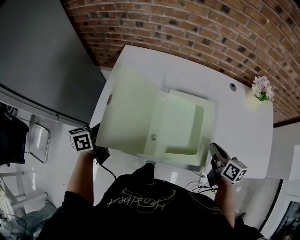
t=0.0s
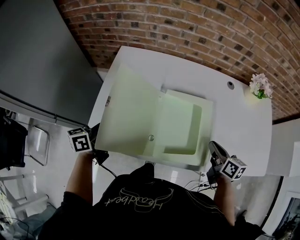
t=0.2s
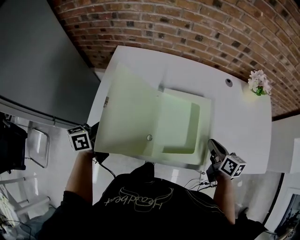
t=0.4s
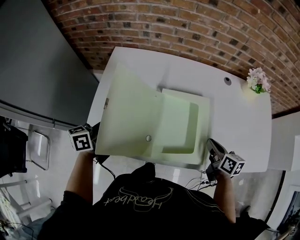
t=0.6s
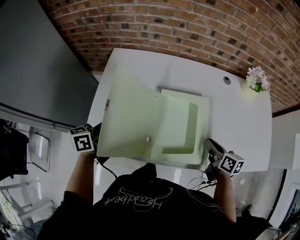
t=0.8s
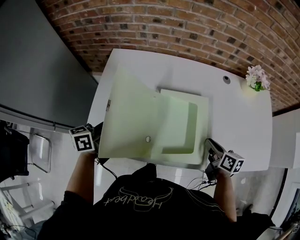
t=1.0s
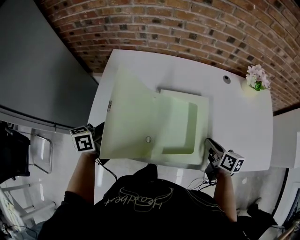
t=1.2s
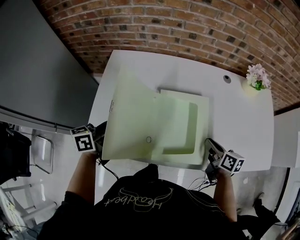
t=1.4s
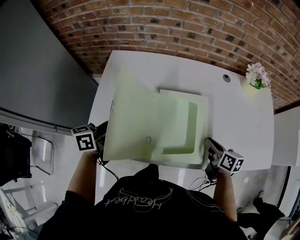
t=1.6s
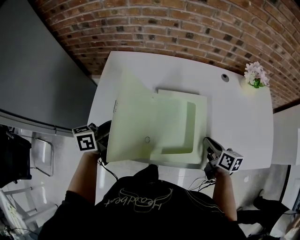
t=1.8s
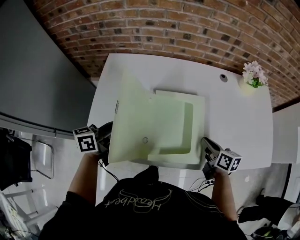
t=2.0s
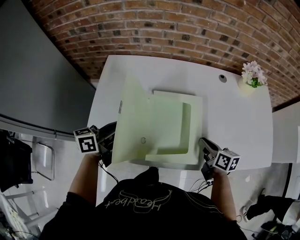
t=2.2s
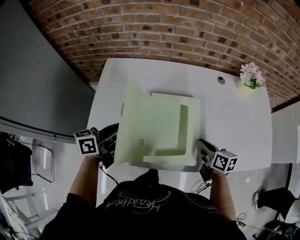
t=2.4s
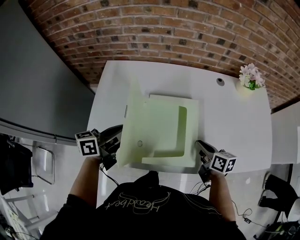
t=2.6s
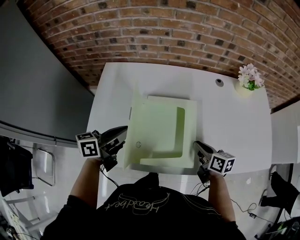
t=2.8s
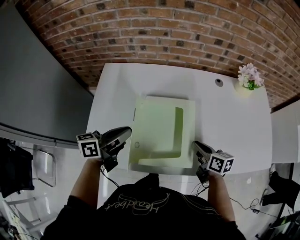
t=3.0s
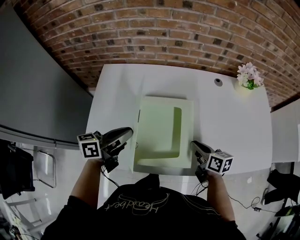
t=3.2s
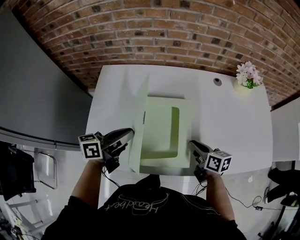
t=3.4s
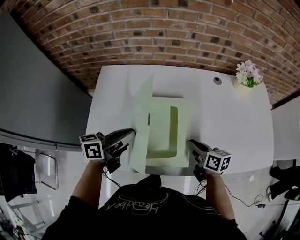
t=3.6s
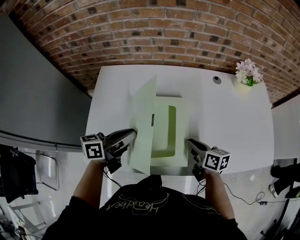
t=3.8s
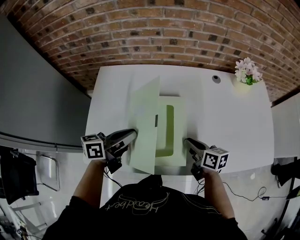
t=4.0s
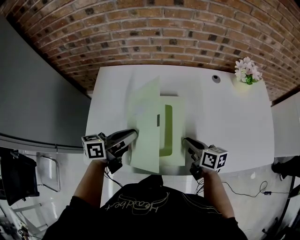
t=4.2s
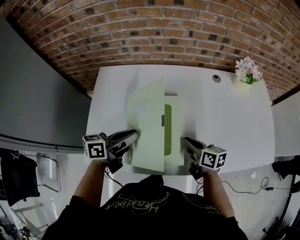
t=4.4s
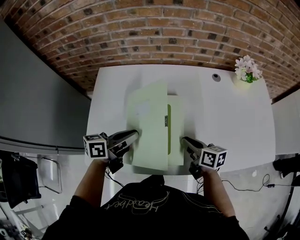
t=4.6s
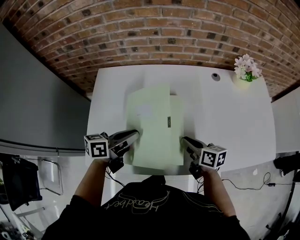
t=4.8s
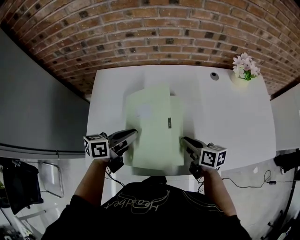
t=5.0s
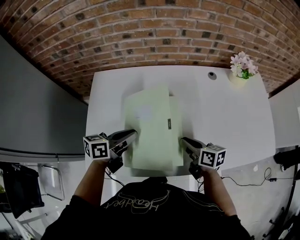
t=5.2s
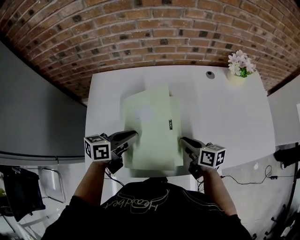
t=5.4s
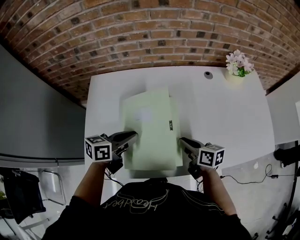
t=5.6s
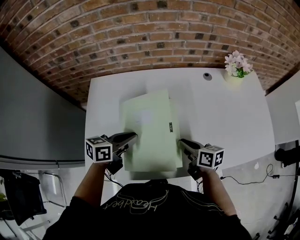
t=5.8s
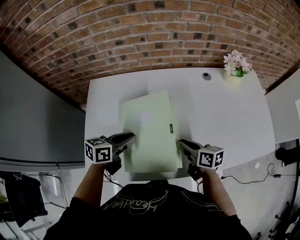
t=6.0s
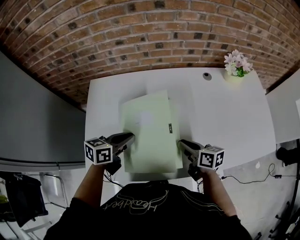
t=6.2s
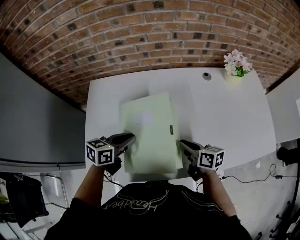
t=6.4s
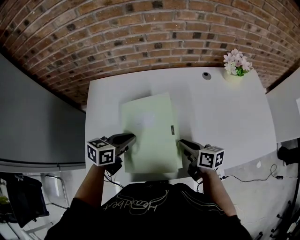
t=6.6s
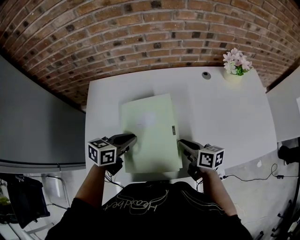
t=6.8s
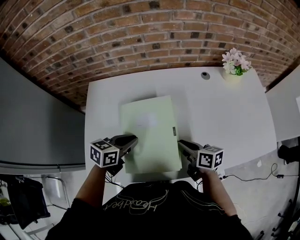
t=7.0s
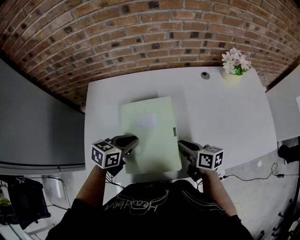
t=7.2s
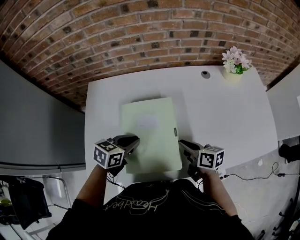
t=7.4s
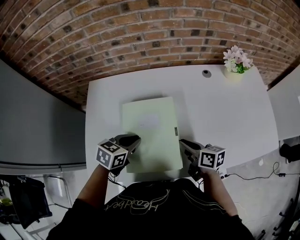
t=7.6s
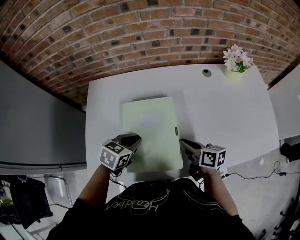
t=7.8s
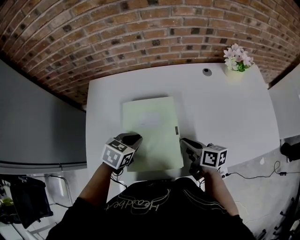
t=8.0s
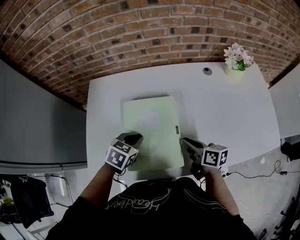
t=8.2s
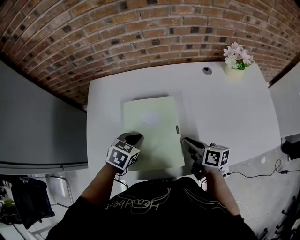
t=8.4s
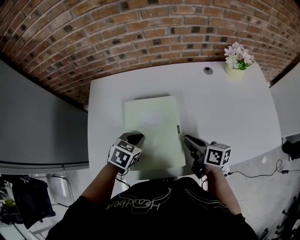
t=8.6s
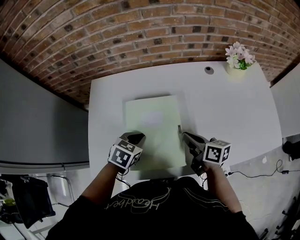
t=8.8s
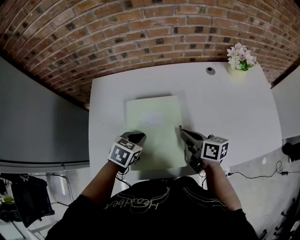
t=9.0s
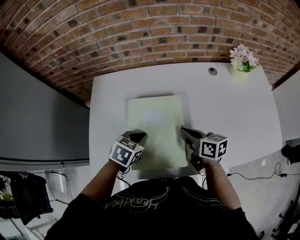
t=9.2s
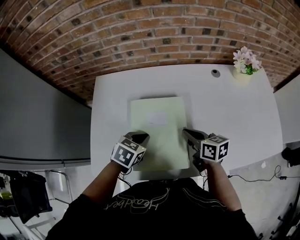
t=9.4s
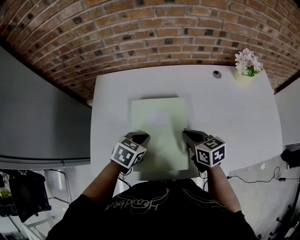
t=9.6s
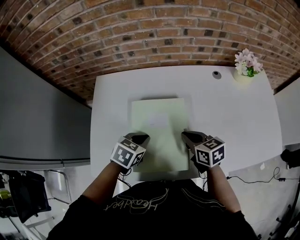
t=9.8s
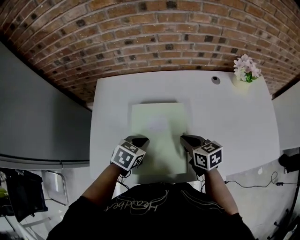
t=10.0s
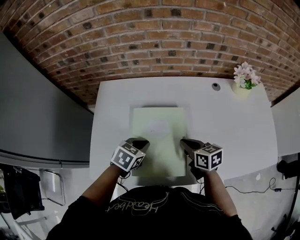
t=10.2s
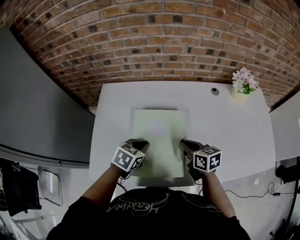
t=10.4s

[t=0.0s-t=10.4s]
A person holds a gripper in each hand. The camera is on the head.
t=0.0s to t=1.4s: The left gripper heads to the right, covering some 5 cm.
t=1.4s to t=3.0s: The left gripper shifts by roughly 5 cm.
t=3.0s to t=4.4s: The grippers move only a little.
t=4.4s to t=6.0s: The grippers move only a little.
t=6.0s to t=7.4s: The grippers move only a little.

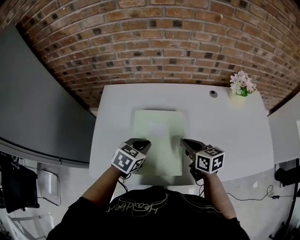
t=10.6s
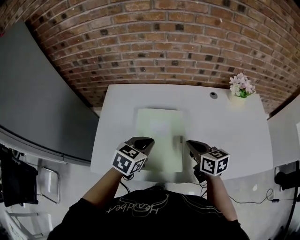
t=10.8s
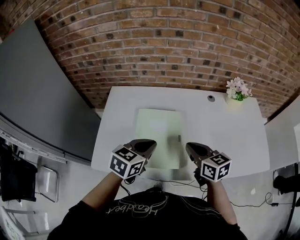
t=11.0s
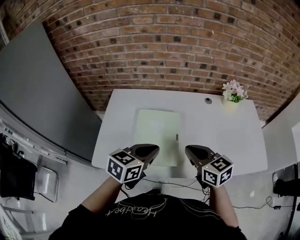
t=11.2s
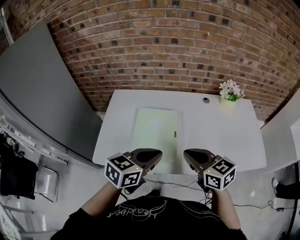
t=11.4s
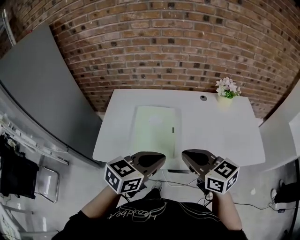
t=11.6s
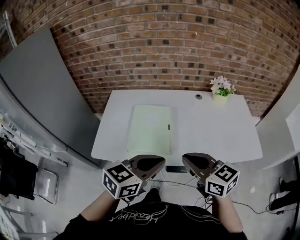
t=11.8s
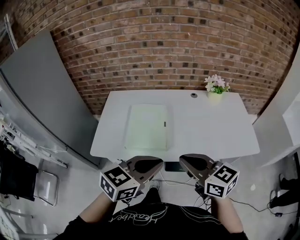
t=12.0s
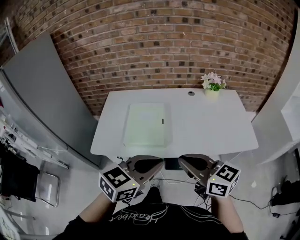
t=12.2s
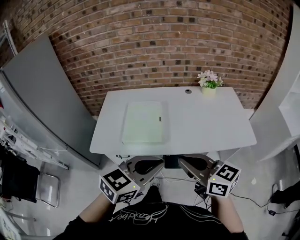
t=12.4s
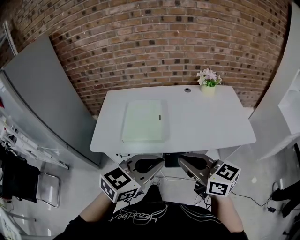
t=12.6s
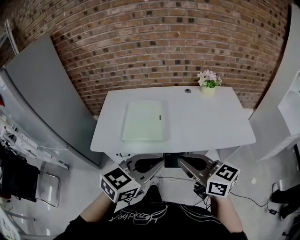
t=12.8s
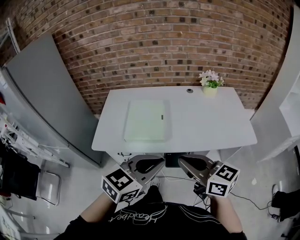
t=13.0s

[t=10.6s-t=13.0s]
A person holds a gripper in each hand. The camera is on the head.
t=10.6s to t=11.8s: The left gripper moves backward, upward and to the right, about 35 cm, and rotates approximately 30 degrees, while the right gripper shifts roughly 30 cm backward and upward, and changes its angle by roughly 30 degrees.
t=11.8s to t=13.0s: The two grippers go some 10 cm backward.

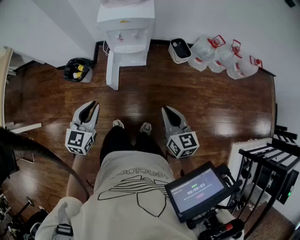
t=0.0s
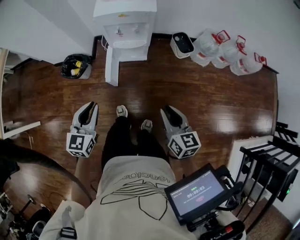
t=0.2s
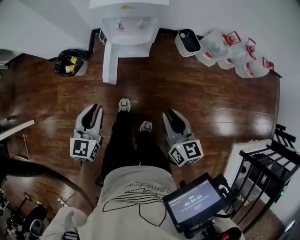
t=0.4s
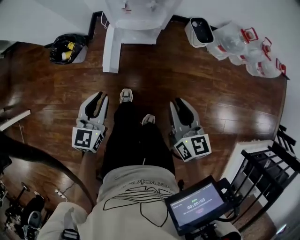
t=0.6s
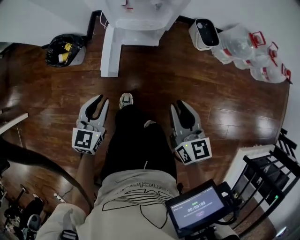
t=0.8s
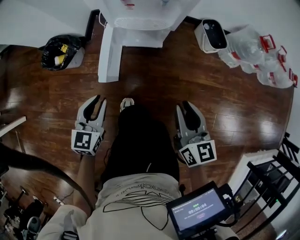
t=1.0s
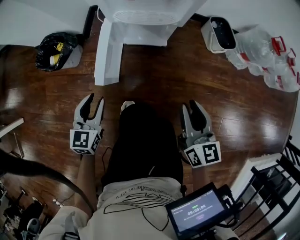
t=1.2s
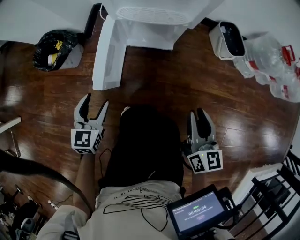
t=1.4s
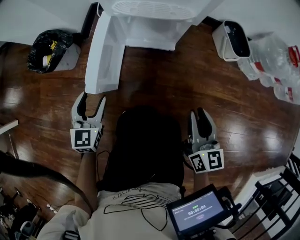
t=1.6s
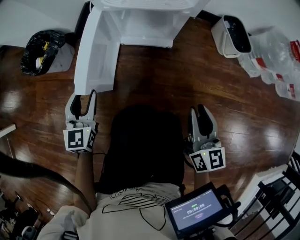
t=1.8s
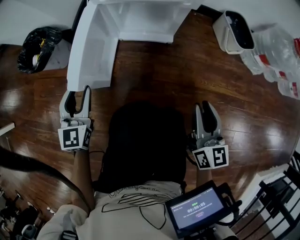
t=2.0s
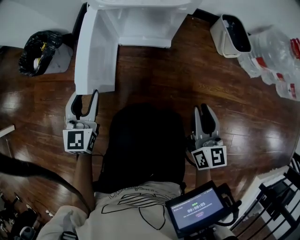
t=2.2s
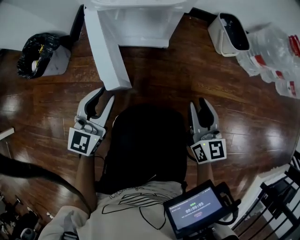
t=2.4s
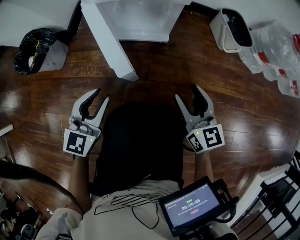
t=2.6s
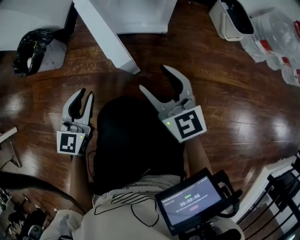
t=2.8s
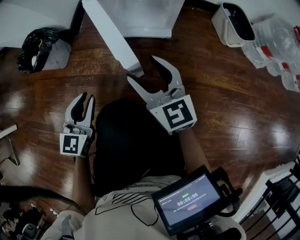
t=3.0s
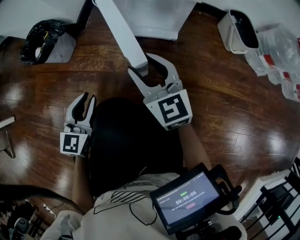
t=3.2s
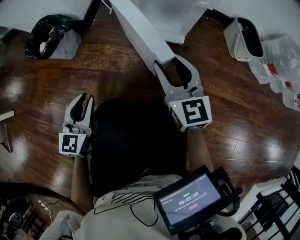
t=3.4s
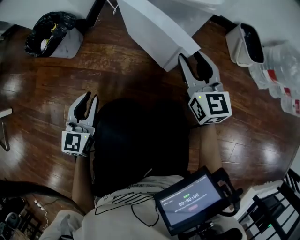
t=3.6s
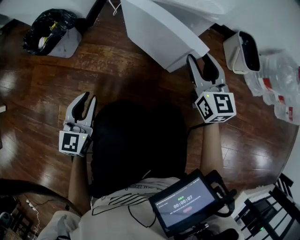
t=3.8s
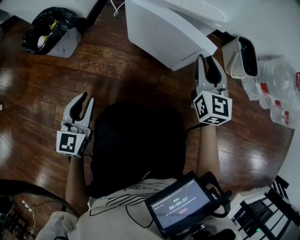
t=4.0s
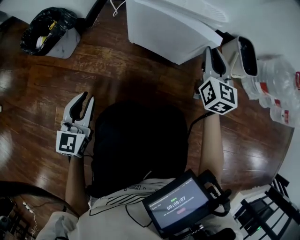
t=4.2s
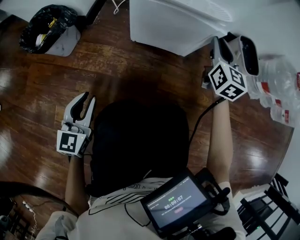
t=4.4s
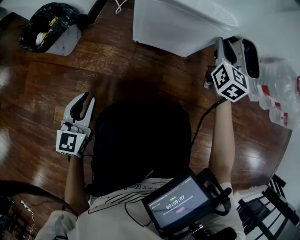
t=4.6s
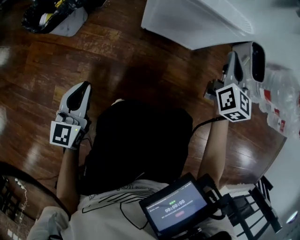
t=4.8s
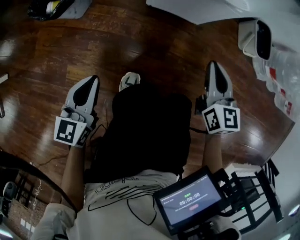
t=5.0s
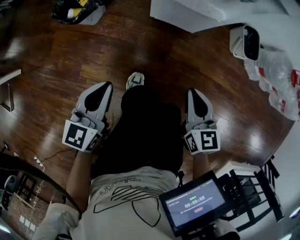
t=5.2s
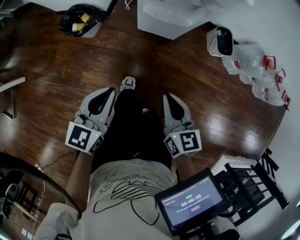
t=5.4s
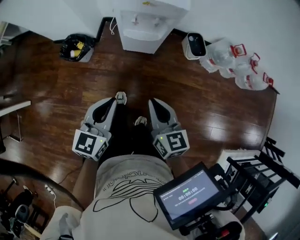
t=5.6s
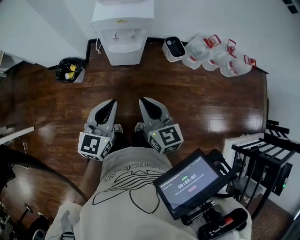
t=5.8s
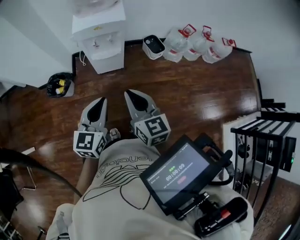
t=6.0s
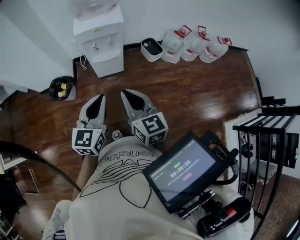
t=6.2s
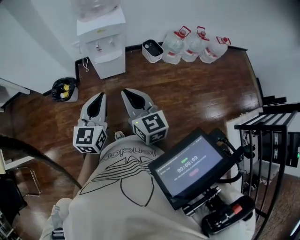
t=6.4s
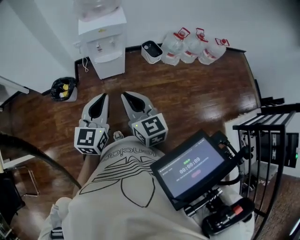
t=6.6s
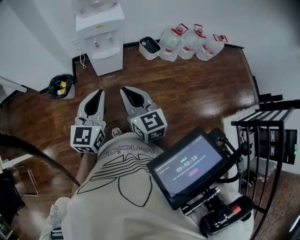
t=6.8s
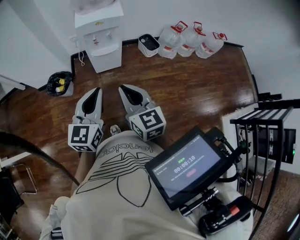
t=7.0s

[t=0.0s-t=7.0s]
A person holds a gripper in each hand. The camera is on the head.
t=0.0s to t=1.4s: The right gripper heads downward and forward, covering roughly 40 cm, and opens; the left gripper heads downward, covering roughly 50 cm, and opens up.
t=1.4s to t=2.8s: The right gripper shifts approximately 15 cm downward, to the left and forward, rotates some 30 degrees, and opens up. The left gripper travels downward by some 5 cm, goes to the right and returns, approximately 10 cm each way, and closes up.
t=2.8s to t=4.2s: The left gripper goes approximately 5 cm to the left. Meanwhile the right gripper is displaced forward and to the right by approximately 20 cm, swivels about 30 degrees, and closes.
t=4.2s to t=5.6s: The left gripper shifts about 50 cm upward. The right gripper shifts some 60 cm upward and backward, and swivels approximately 30 degrees.
t=5.6s to t=7.0s: Both grippers move upward and backward, some 20 cm.

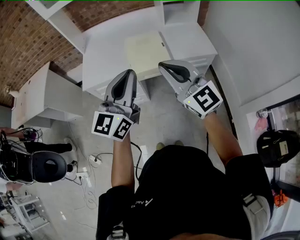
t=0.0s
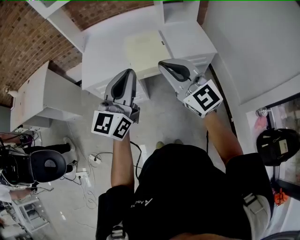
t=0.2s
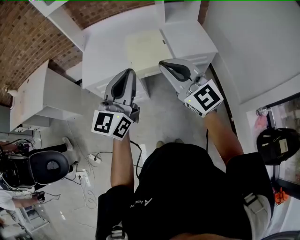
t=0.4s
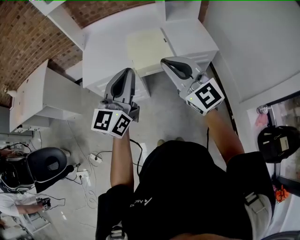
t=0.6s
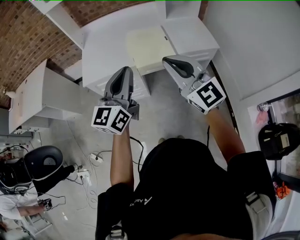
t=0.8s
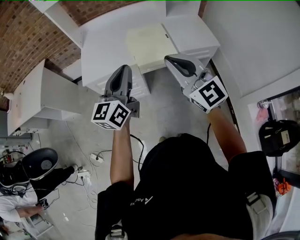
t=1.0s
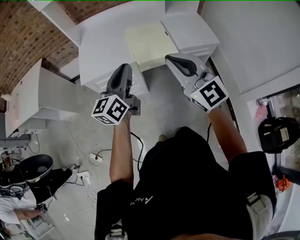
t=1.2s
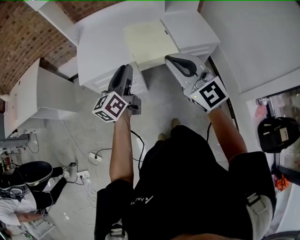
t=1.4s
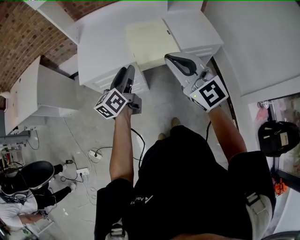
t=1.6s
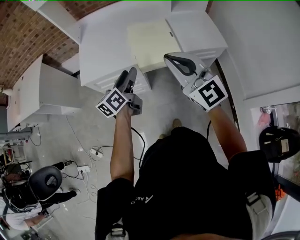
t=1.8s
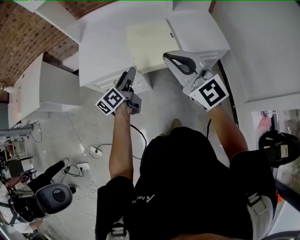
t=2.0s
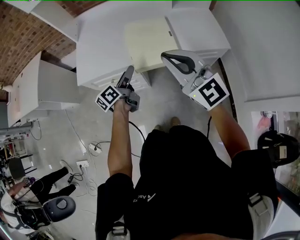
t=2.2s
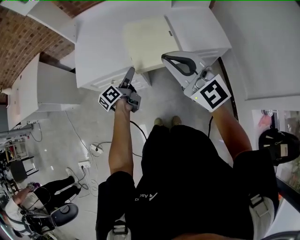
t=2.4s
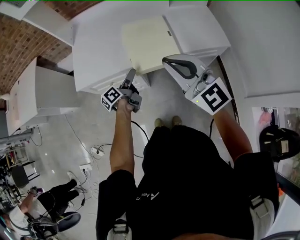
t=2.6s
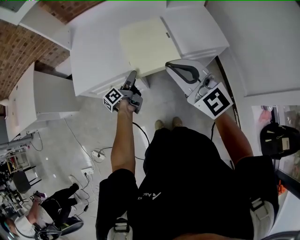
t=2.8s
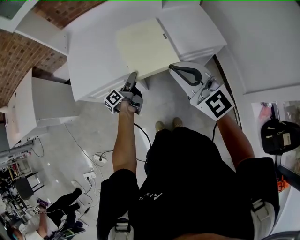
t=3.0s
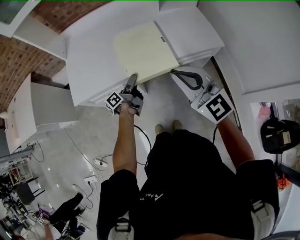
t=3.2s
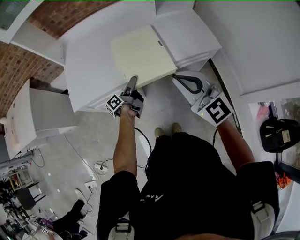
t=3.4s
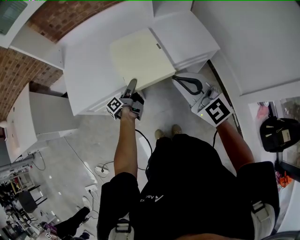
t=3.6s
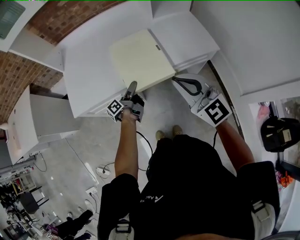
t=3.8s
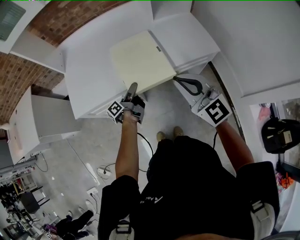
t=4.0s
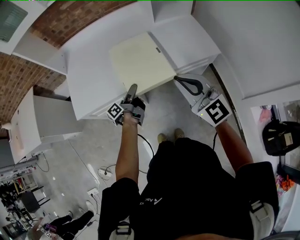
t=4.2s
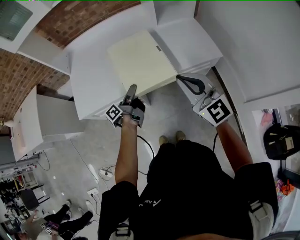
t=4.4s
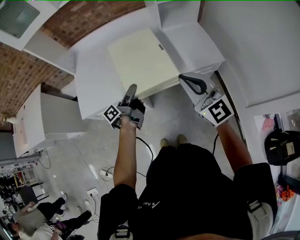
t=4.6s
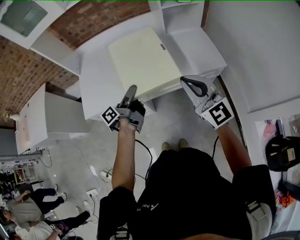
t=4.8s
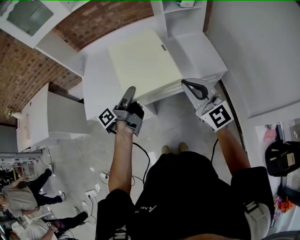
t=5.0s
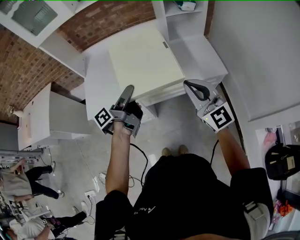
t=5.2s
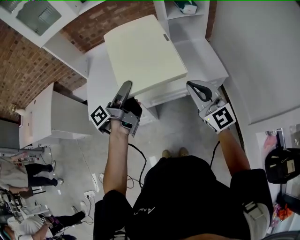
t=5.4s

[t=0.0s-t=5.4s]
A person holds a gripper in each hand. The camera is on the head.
t=0.0s to t=1.4s: The left gripper travels downward, to the left and forward by about 20 cm, and changes its angle by roughly 30 degrees. The right gripper heads to the left, covering some 5 cm.
t=1.4s to t=2.8s: The left gripper moves downward and forward, about 25 cm, rolls counterclockwise, seen from behind, by approximately 50 degrees, and opens; the right gripper heads forward, covering about 10 cm.
t=2.8s to t=4.0s: The left gripper shifts by roughly 5 cm; the right gripper moves to the right, some 5 cm.
t=4.0s to t=5.4s: The left gripper shifts about 30 cm upward; the right gripper shifts approximately 10 cm to the right and upward.
